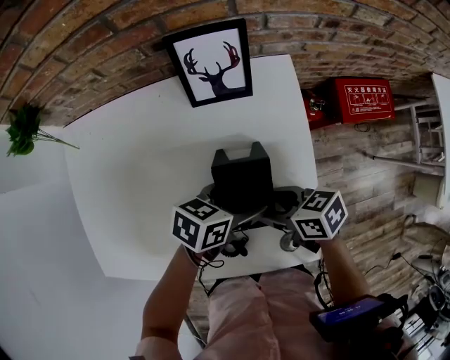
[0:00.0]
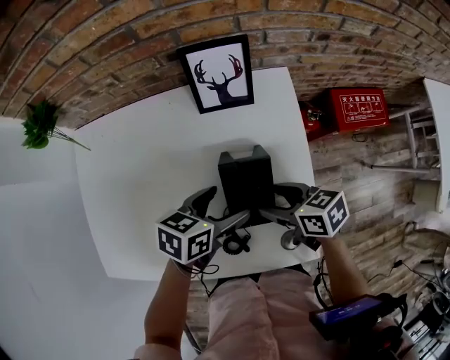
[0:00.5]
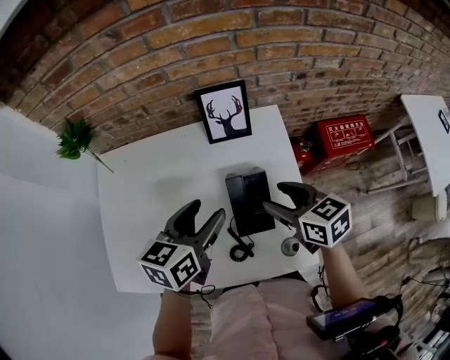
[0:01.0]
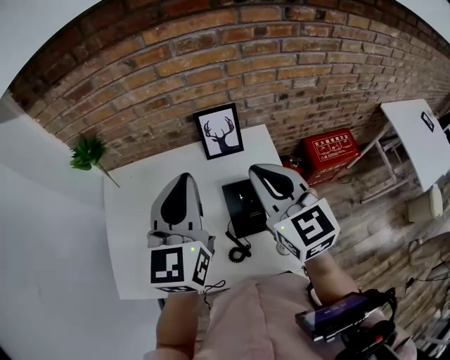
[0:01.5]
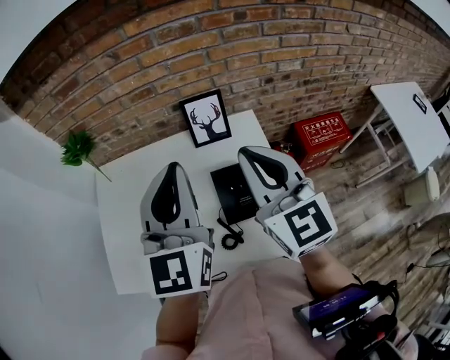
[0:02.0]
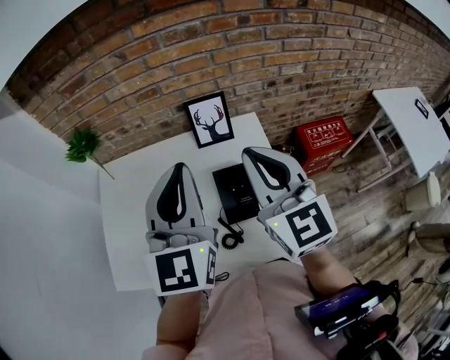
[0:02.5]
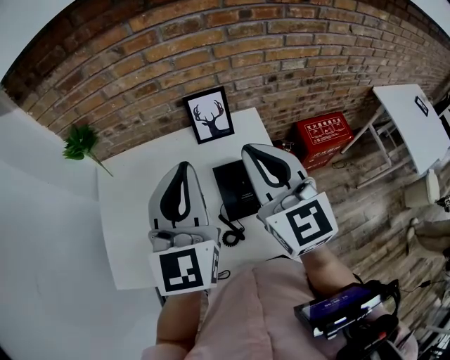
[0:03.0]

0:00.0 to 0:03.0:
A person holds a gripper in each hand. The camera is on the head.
0:00.0 to 0:01.5: The two grippers go some 35 cm upward. The left gripper tilts its fingers approximately 40 degrees upward, and closes its fingers; the right gripper changes its angle by roughly 70 degrees, and closes its fingers.
0:01.5 to 0:03.0: The left gripper moves approximately 5 cm.

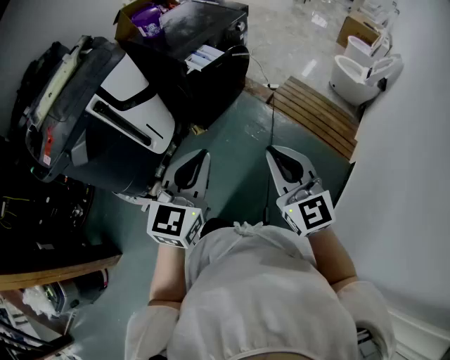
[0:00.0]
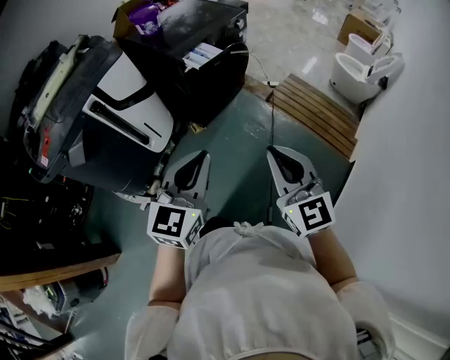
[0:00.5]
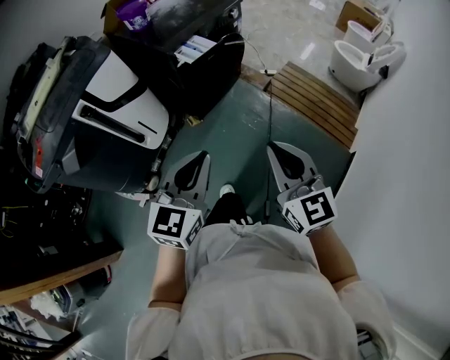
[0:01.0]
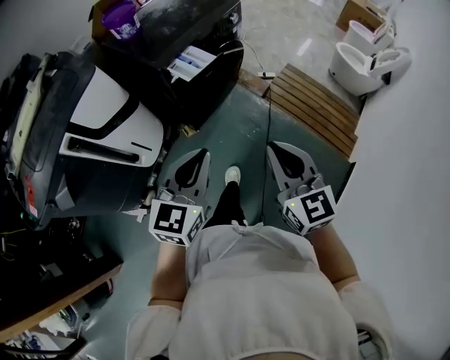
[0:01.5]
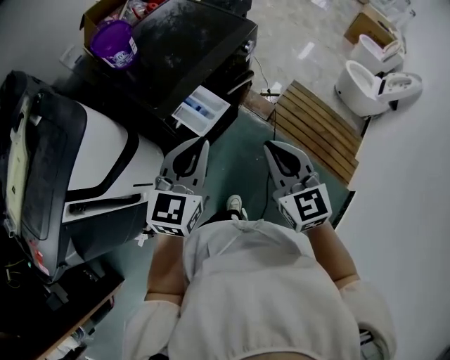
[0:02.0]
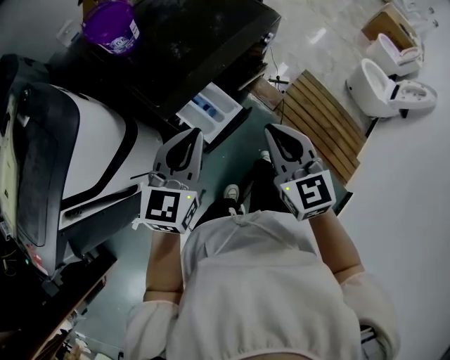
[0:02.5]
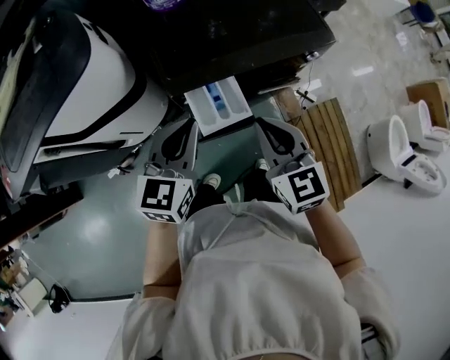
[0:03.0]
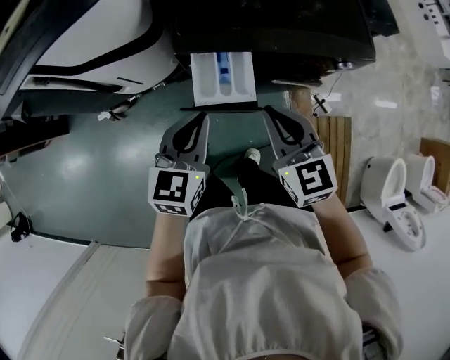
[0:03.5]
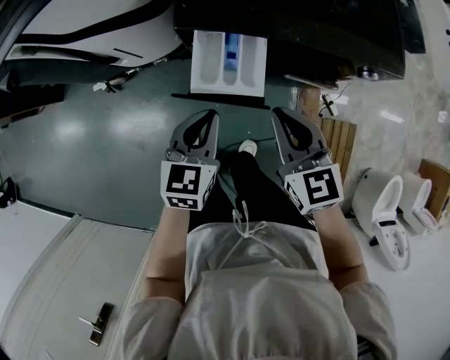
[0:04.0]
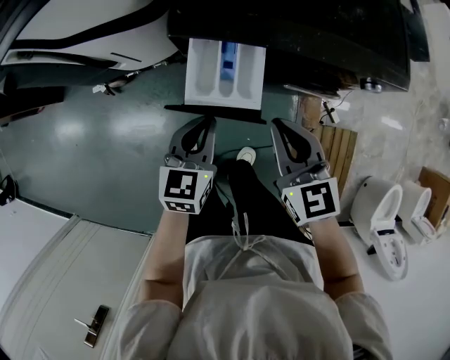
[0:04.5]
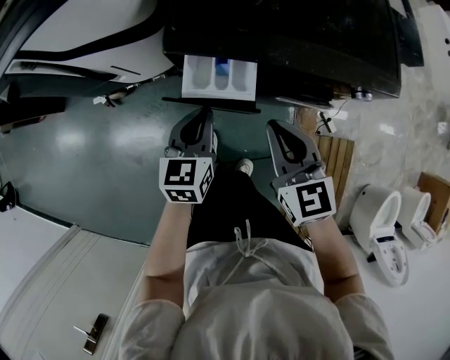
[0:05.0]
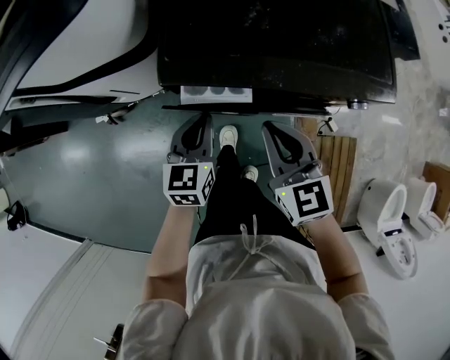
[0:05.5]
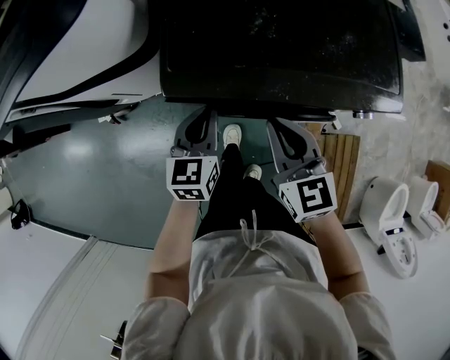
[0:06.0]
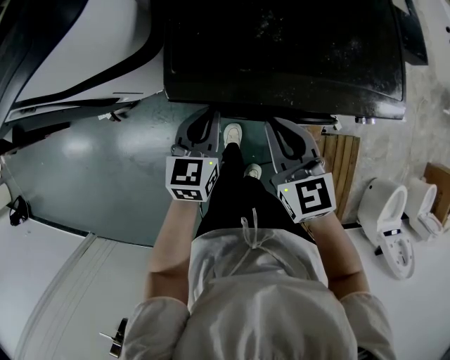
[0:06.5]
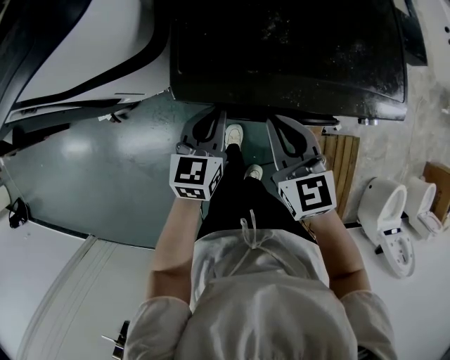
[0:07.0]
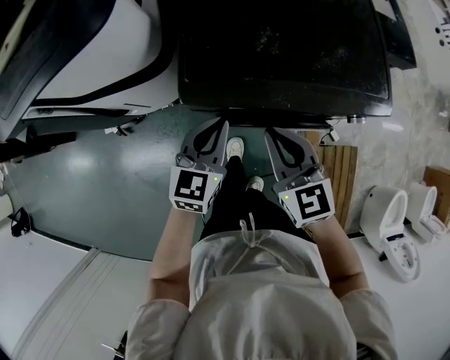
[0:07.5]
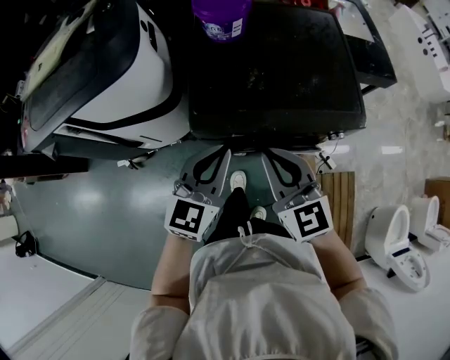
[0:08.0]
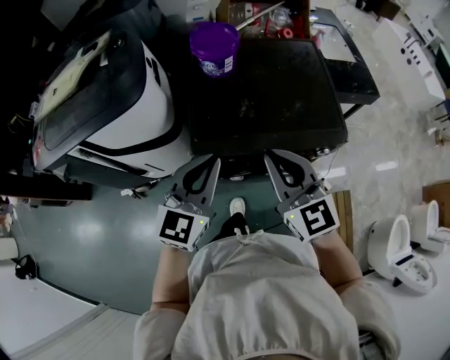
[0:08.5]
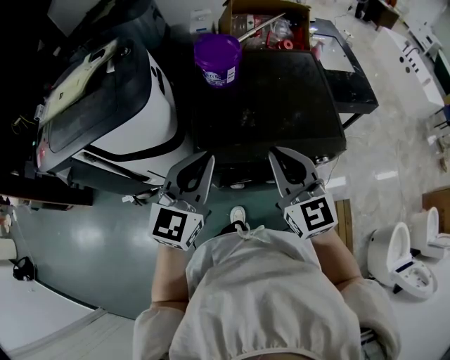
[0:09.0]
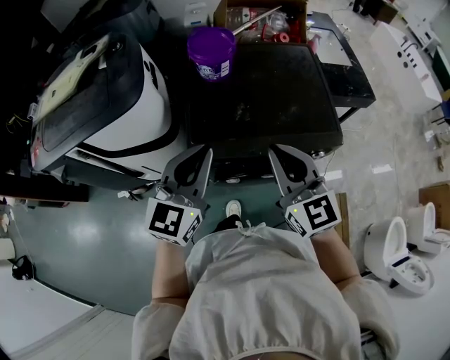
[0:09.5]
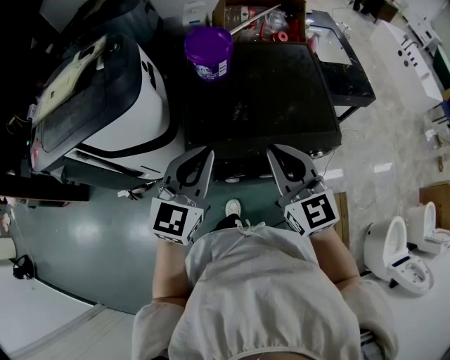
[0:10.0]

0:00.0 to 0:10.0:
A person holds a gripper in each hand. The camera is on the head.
0:00.0 to 0:02.0: The two grippers travel together, forward, some 50 cm.
0:02.0 to 0:04.0: The right gripper shifts by some 30 cm, and changes its angle by about 60 degrees. The left gripper moves downward, about 25 cm, and rotates about 60 degrees.
0:04.0 to 0:06.0: Both grippers move forward, approximately 15 cm.
0:06.0 to 0:08.0: Both grippers move upward, some 20 cm. The left gripper swivels approximately 20 degrees.
0:08.0 to 0:10.0: Both grippers move upward, roughly 10 cm.

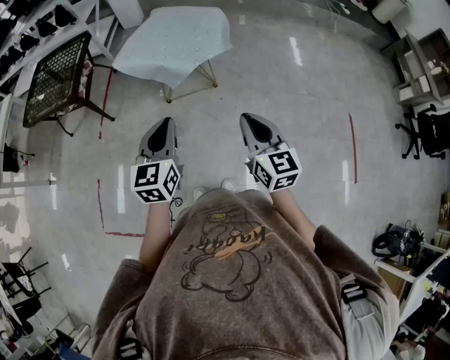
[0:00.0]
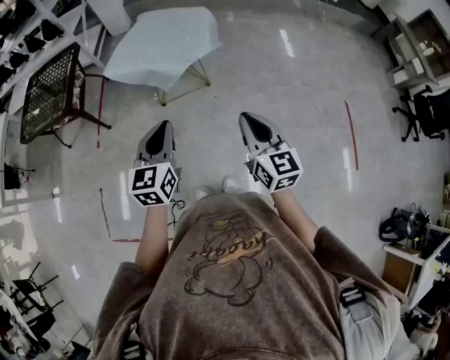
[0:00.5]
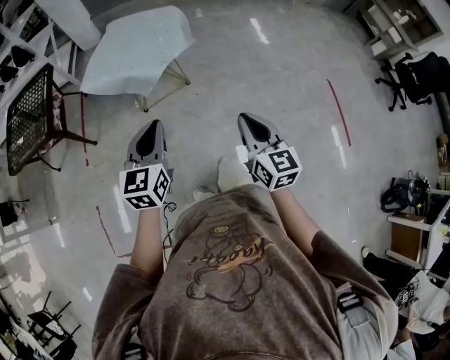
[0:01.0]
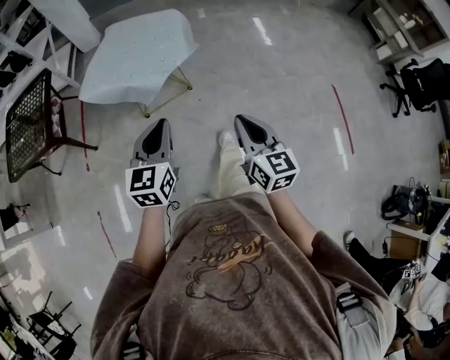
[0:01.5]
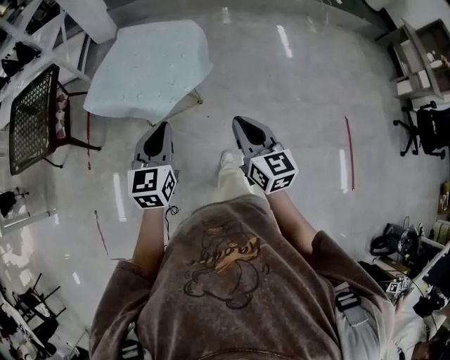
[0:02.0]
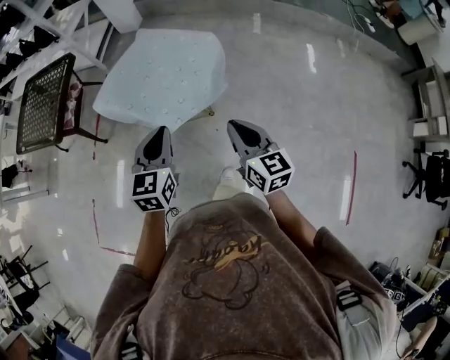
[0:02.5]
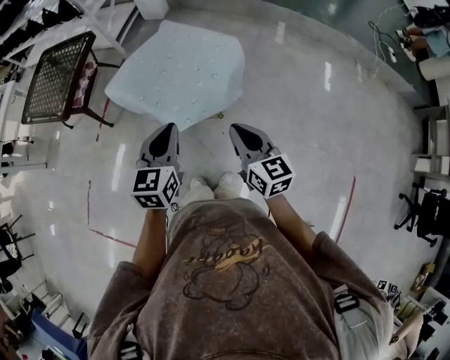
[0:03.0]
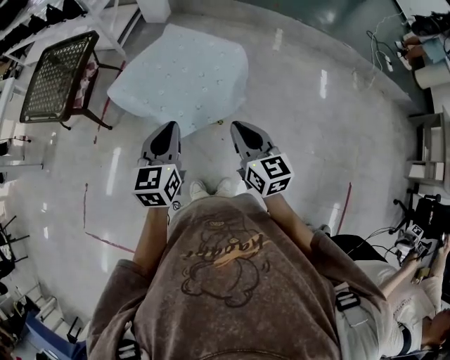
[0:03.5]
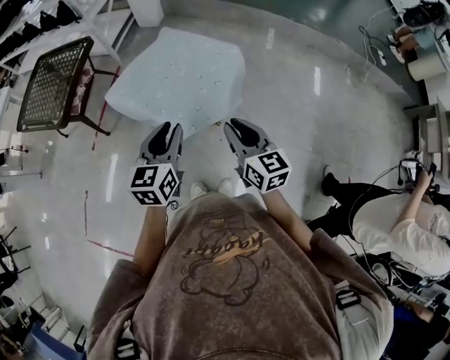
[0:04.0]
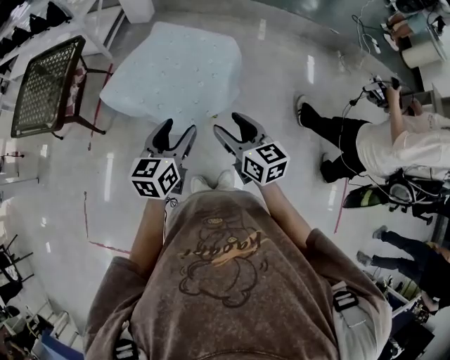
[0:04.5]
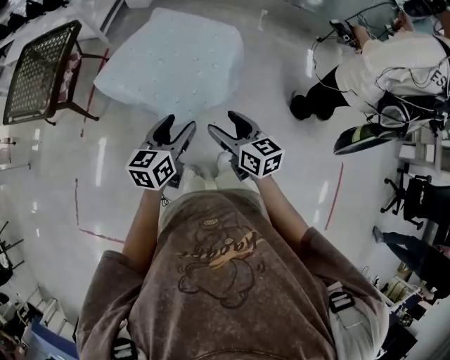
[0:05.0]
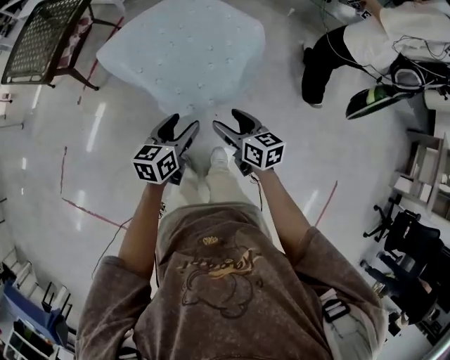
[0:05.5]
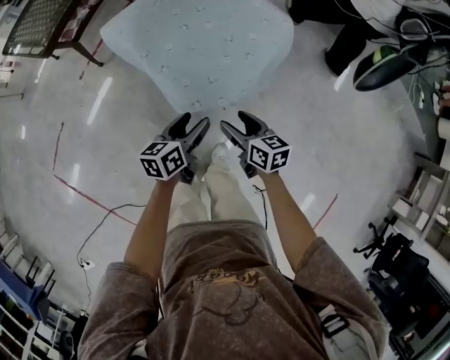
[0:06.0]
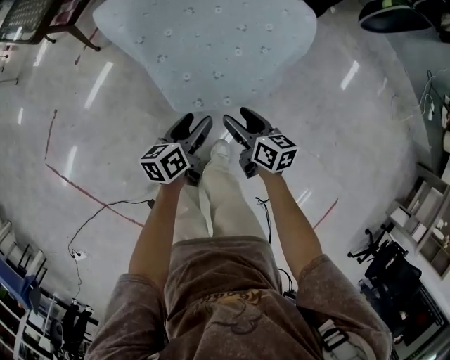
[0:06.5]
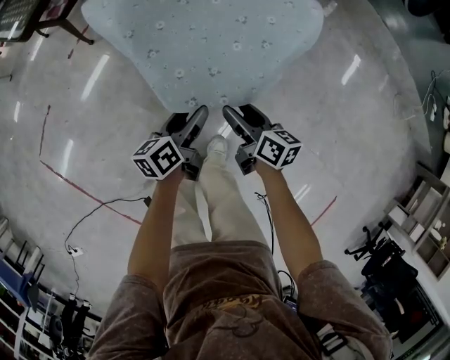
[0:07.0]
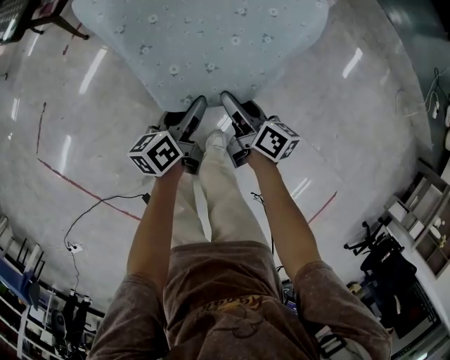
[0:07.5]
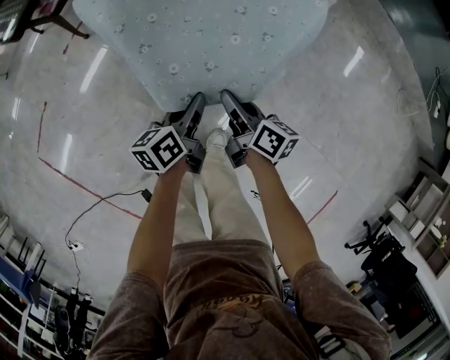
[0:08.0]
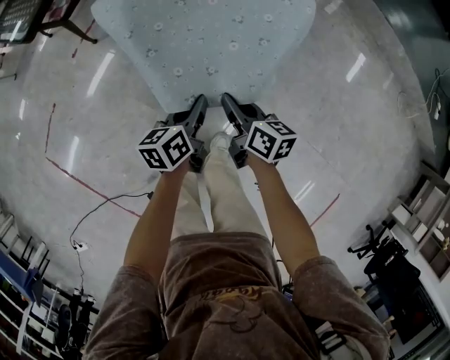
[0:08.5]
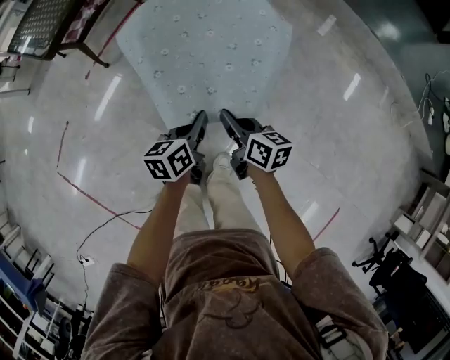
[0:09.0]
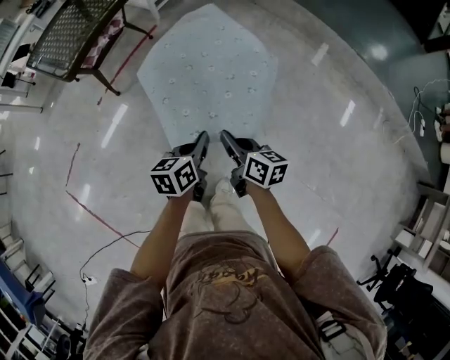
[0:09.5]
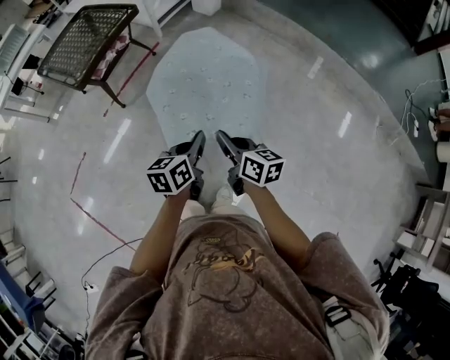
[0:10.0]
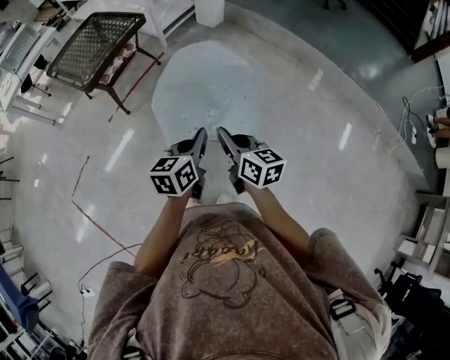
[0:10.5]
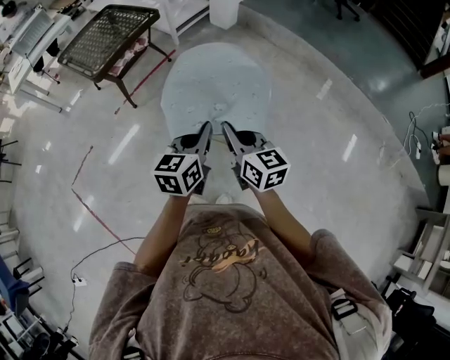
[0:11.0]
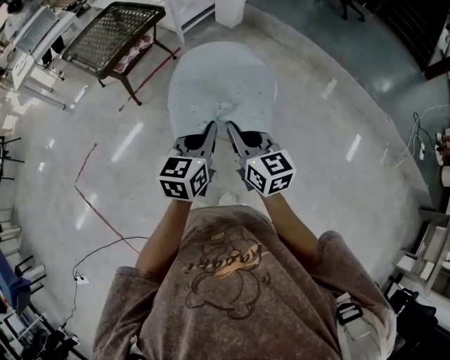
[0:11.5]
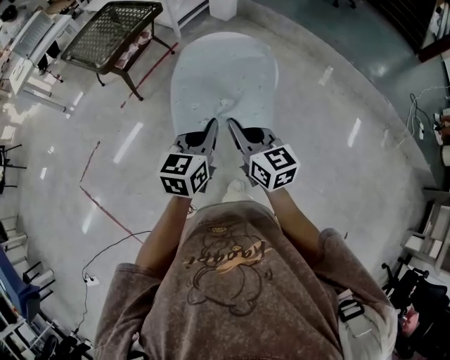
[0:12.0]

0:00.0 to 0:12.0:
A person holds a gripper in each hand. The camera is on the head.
0:00.0 to 0:02.0: Both grippers move forward, roughly 20 cm.
0:02.0 to 0:04.0: The grippers both shift forward by about 15 cm. The right gripper swivels roughly 20 degrees.
0:04.0 to 0:06.0: Both grippers travel together downward, about 25 cm. The left gripper turns by roughly 40 degrees, and opens its fingers, while the right gripper turns by approximately 30 degrees, and opens.
0:06.0 to 0:08.0: The right gripper travels downward and forward by about 10 cm, turns by about 30 degrees, and closes. Meanwhile the left gripper travels downward by approximately 10 cm, and closes.
0:08.0 to 0:10.0: The two grippers go roughly 25 cm upward. The right gripper turns by some 20 degrees.
0:10.0 to 0:12.0: Both grippers travel together upward and backward, approximately 15 cm. The left gripper turns by about 20 degrees; the right gripper turns by approximately 30 degrees.

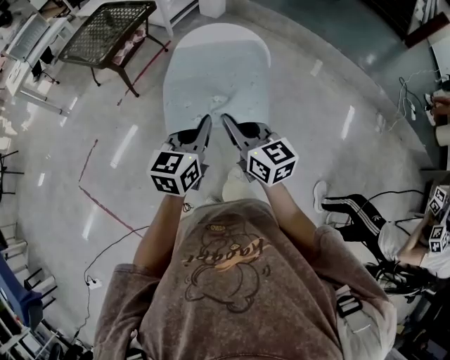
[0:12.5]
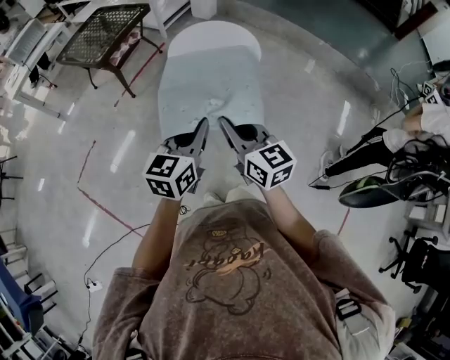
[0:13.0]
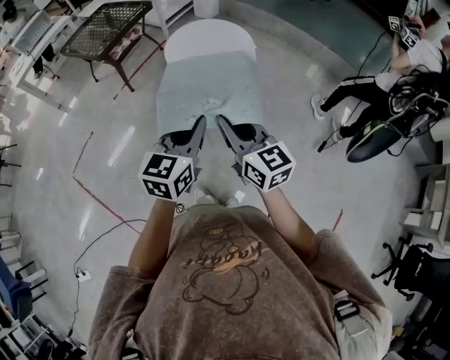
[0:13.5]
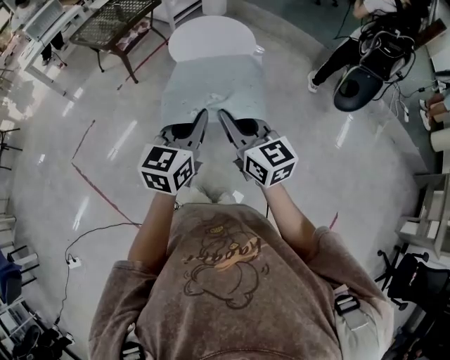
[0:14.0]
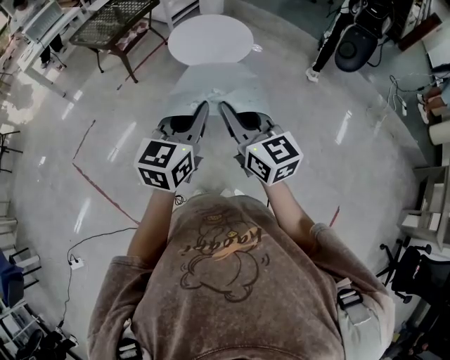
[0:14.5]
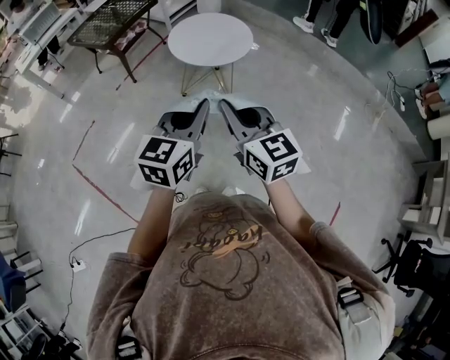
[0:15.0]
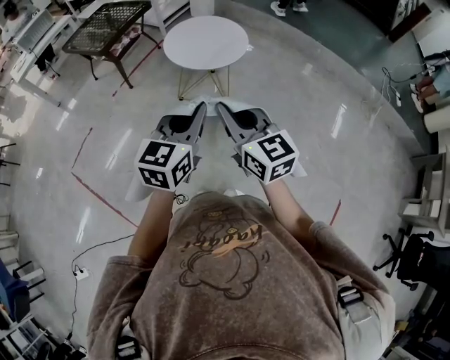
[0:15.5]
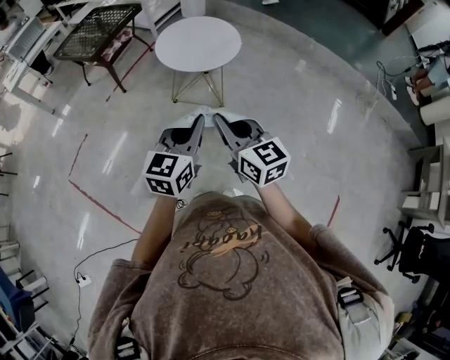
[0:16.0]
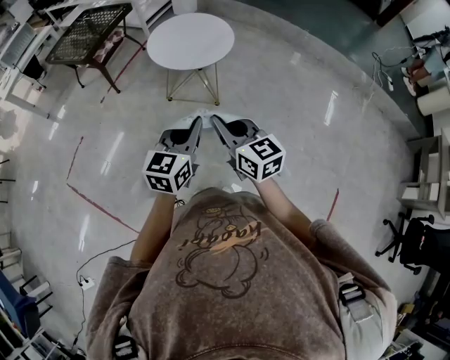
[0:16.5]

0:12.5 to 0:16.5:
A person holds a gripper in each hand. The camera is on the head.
0:12.5 to 0:14.5: The two grippers go roughly 20 cm backward.
0:14.5 to 0:16.5: The two grippers go roughly 10 cm downward.
